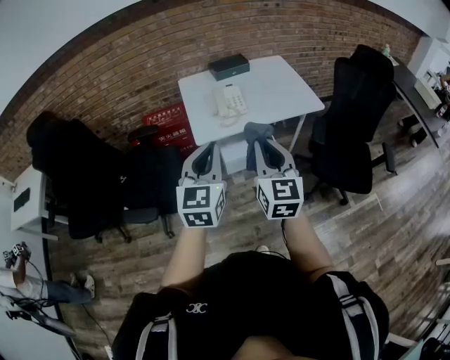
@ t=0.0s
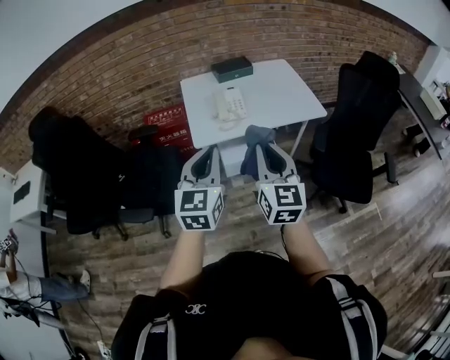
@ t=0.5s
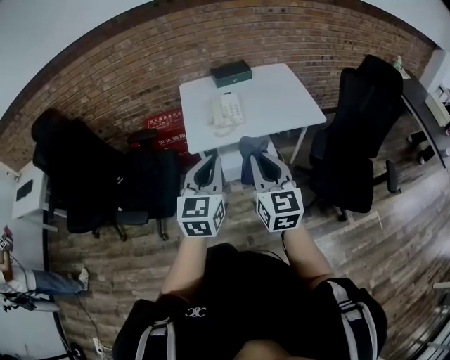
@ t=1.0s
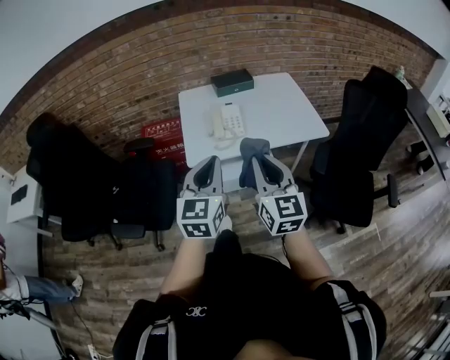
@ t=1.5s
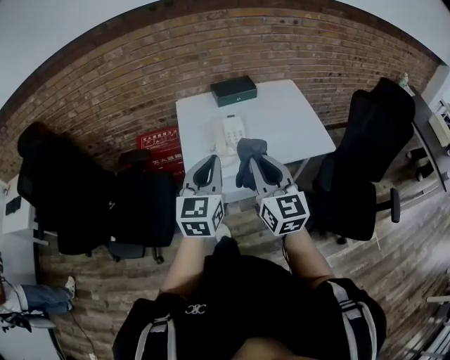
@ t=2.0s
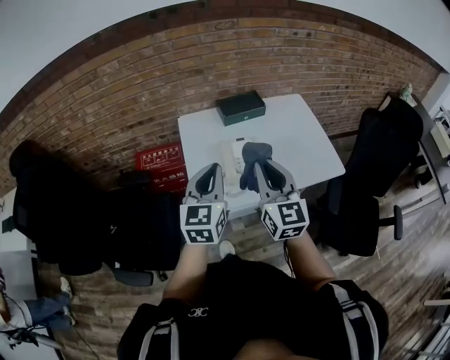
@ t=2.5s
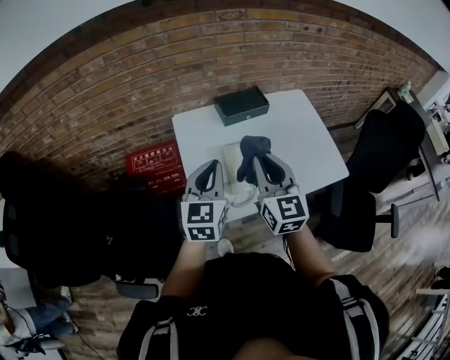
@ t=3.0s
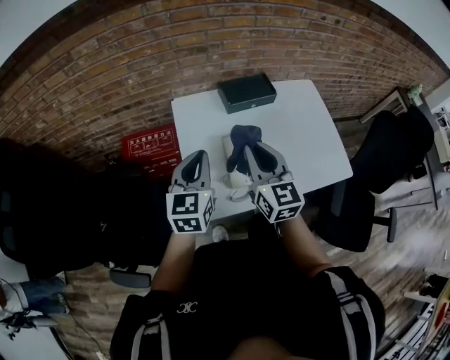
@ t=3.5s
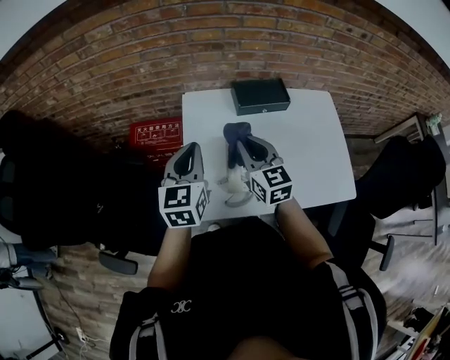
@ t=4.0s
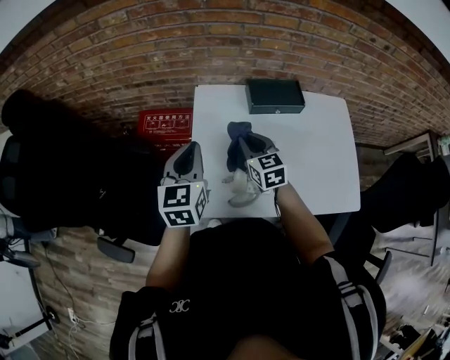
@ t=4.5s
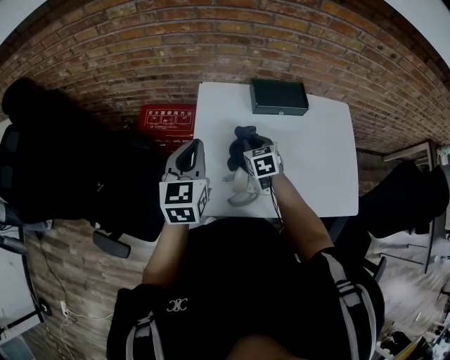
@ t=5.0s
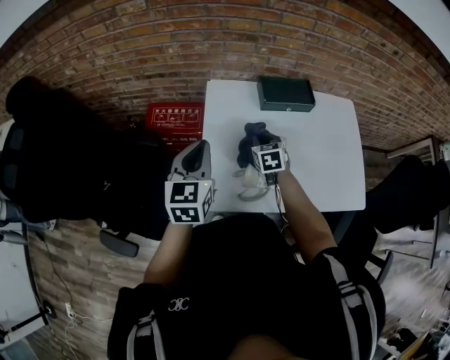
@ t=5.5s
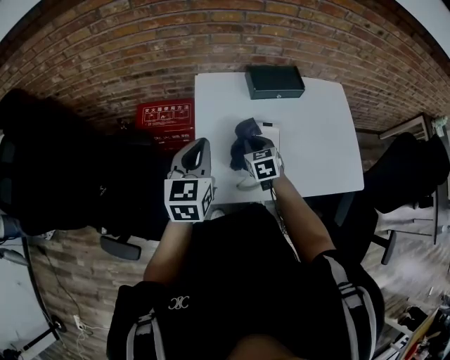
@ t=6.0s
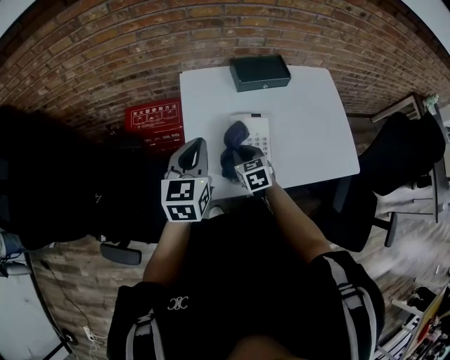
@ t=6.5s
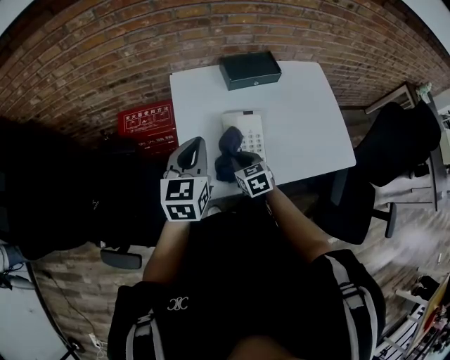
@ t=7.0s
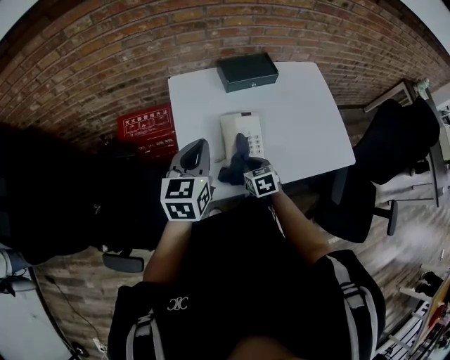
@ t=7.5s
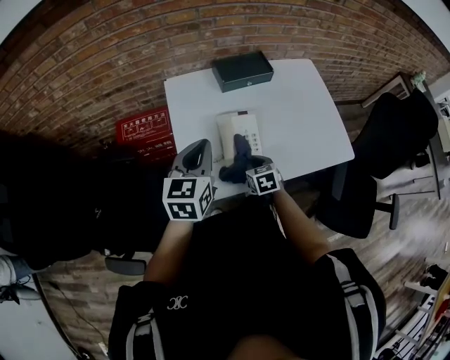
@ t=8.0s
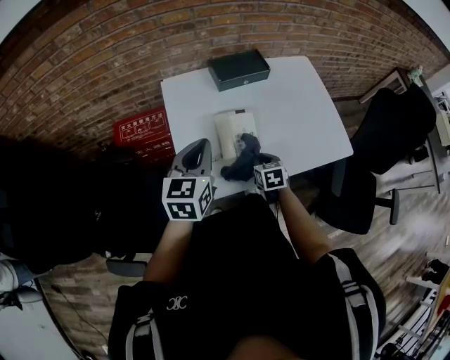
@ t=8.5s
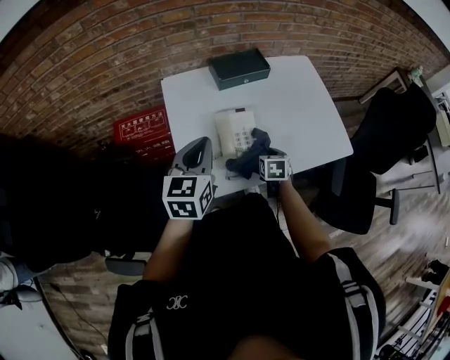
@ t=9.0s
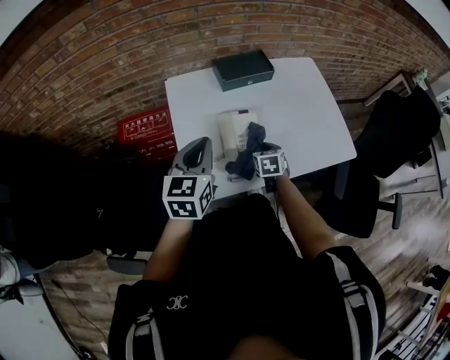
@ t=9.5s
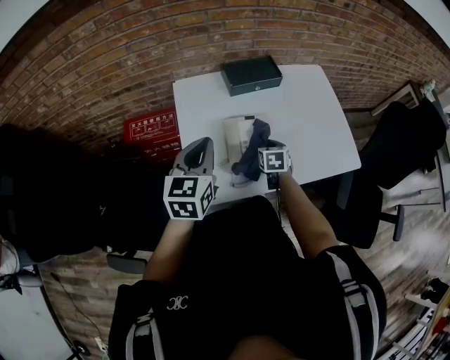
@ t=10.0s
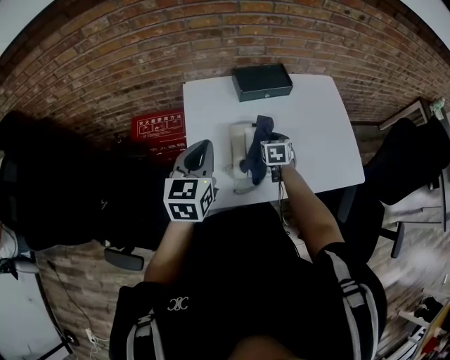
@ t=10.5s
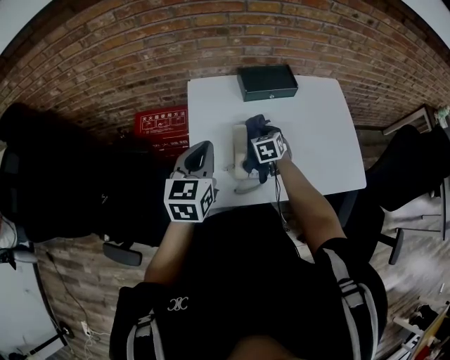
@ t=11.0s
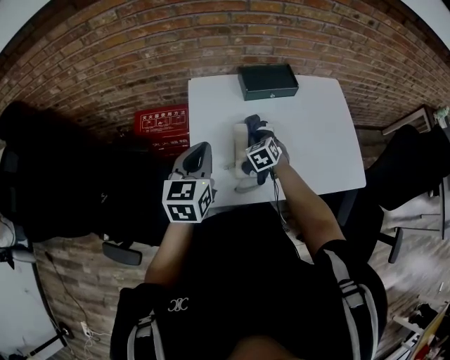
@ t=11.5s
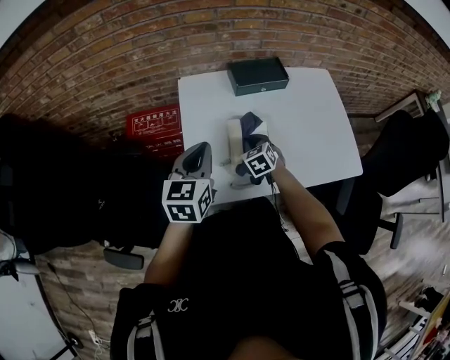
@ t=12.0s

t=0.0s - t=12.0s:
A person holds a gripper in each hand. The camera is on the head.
t=0.0s - t=2.0s: The grippers both shift forward by about 20 cm.
t=2.0s - t=4.0s: Both grippers move forward, some 35 cm. The right gripper changes its angle by about 20 degrees.
t=4.0s - t=6.0s: The left gripper changes place by some 5 cm. Meanwhile the right gripper goes about 20 cm downward, and rotates about 30 degrees.
t=6.0s - t=8.0s: The left gripper moves to the right, some 5 cm. Meanwhile the right gripper shifts some 15 cm backward, to the right and downward.
t=8.0s - t=10.0s: The right gripper moves forward, roughly 10 cm.
t=10.0s - t=12.0s: The right gripper moves to the left, approximately 10 cm, and swivels about 30 degrees.

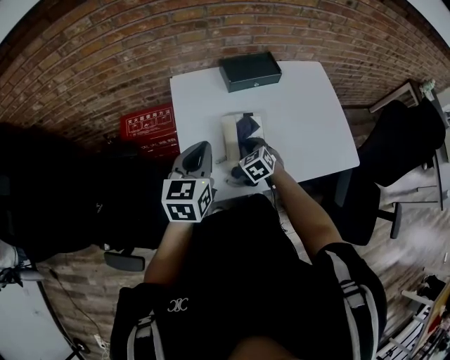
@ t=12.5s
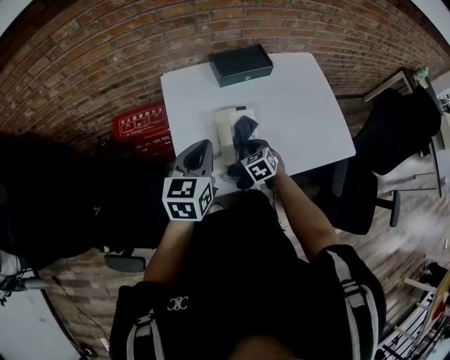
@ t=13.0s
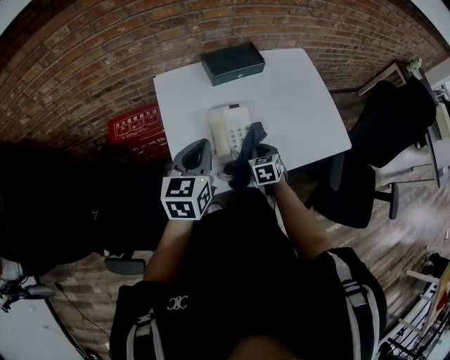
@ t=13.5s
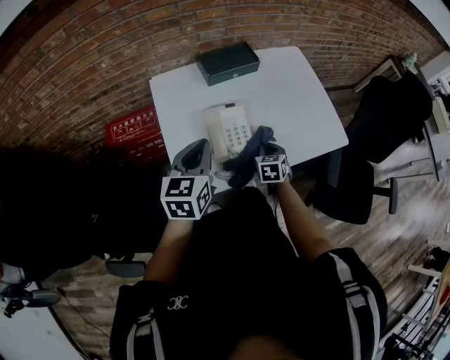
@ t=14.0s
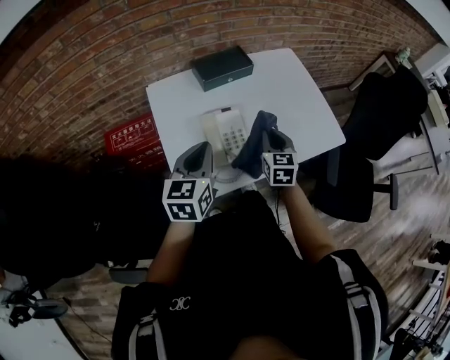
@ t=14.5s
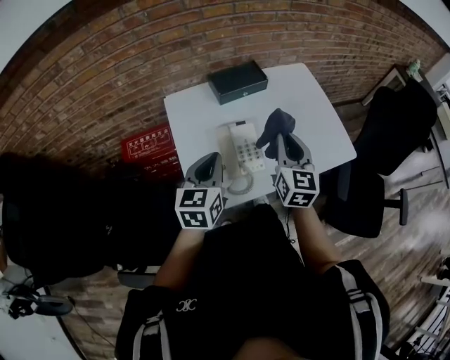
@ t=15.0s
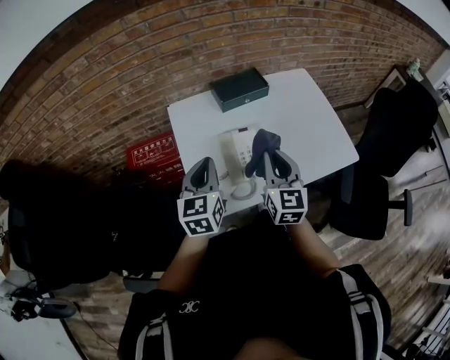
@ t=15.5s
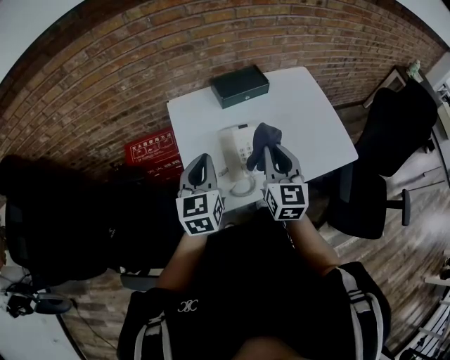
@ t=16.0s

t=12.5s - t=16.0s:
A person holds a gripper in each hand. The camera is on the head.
t=12.5s - t=14.5s: The left gripper is displaced to the right by approximately 5 cm. Meanwhile the right gripper goes some 20 cm to the right and upward, and changes its angle by about 40 degrees.
t=14.5s - t=16.0s: The left gripper changes place by roughly 5 cm. Meanwhile the right gripper travels upward and to the left by some 15 cm.

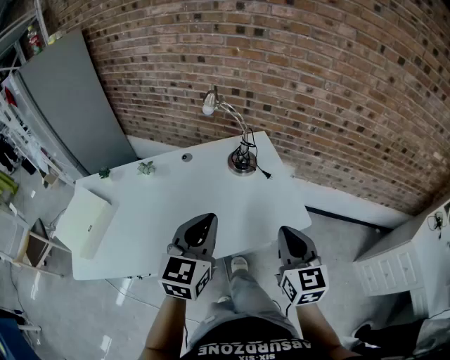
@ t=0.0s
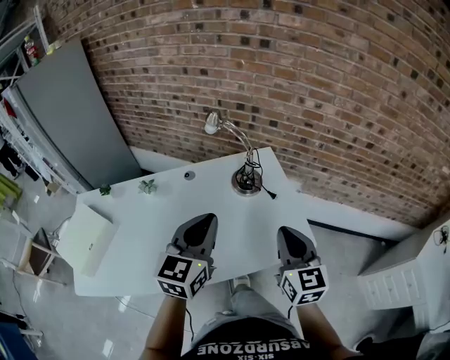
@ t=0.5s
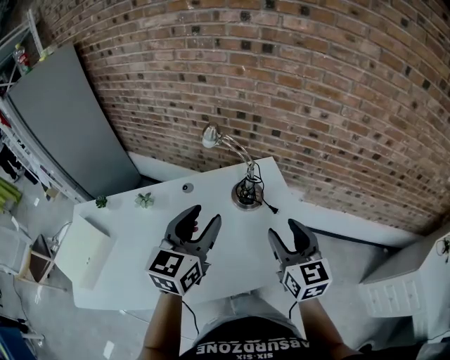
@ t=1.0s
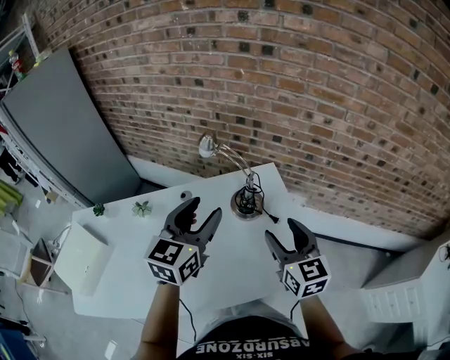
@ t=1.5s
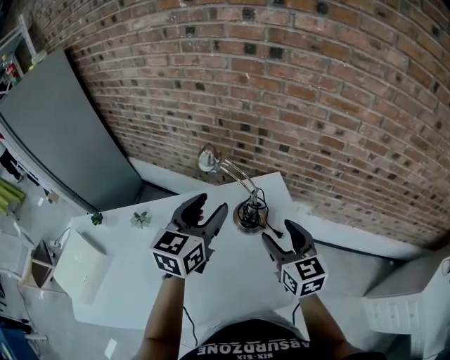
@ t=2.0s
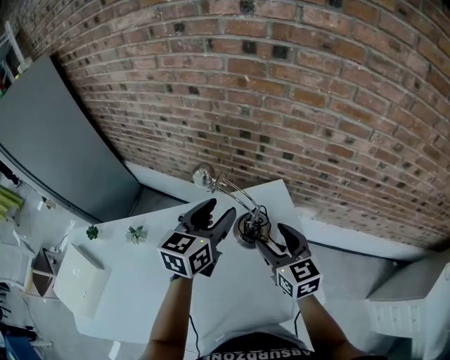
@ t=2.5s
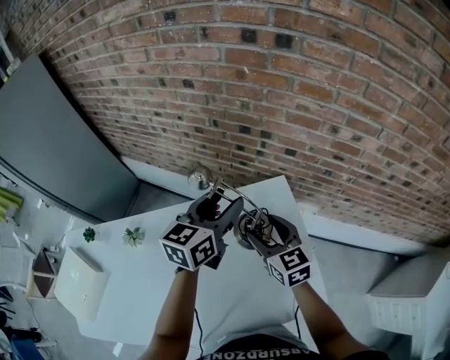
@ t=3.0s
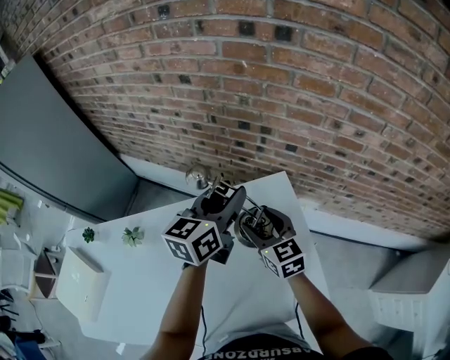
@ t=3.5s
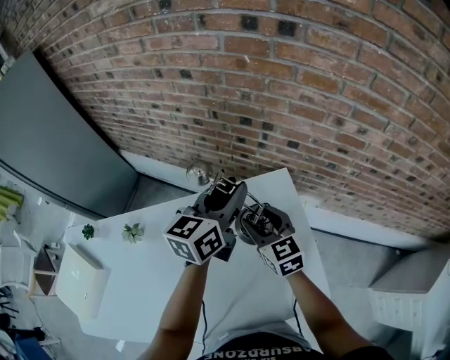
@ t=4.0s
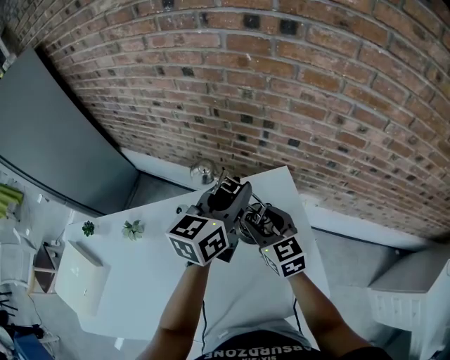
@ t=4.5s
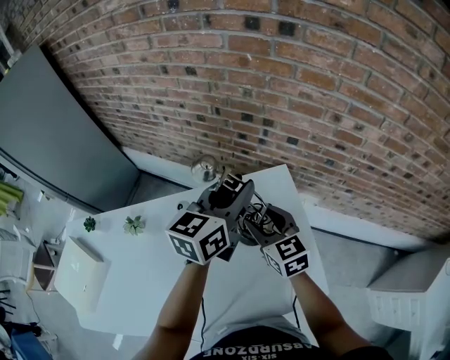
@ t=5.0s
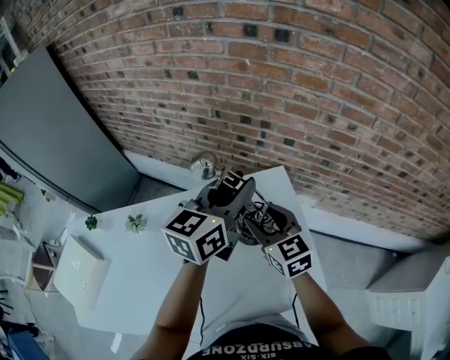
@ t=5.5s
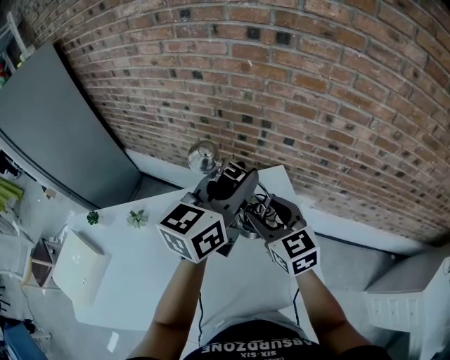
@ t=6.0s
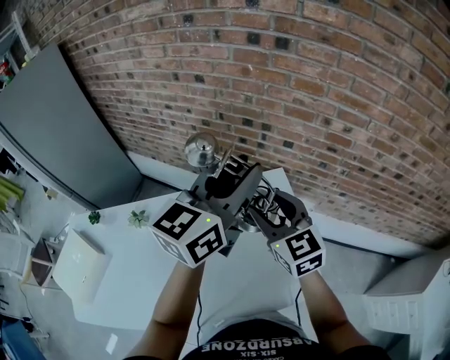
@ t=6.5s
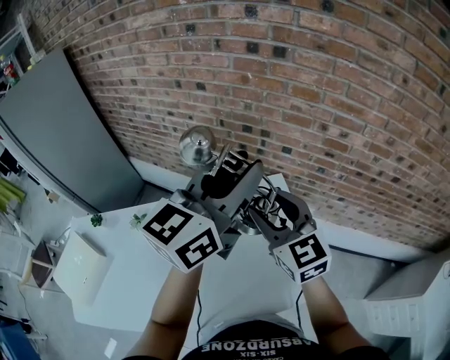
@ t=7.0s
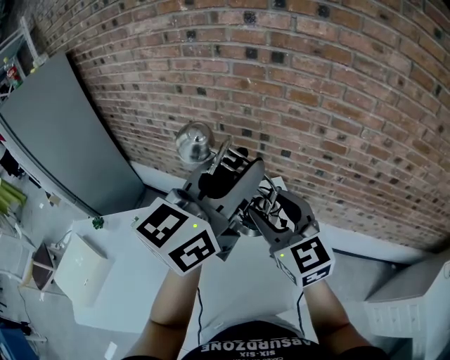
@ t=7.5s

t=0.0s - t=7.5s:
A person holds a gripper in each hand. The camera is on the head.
t=0.0s - t=2.0s: The grippers both shift forward by some 30 cm. The left gripper opens its fingers, while the right gripper opens.
t=2.0s - t=4.0s: The right gripper shifts about 20 cm forward, downward and to the left, while the left gripper goes roughly 15 cm forward, and closes.
t=4.0s - t=5.5s: Both grippers move upward and backward, some 10 cm.
t=5.5s - t=7.5s: The right gripper heads upward, covering roughly 15 cm; the left gripper goes approximately 20 cm upward and backward.

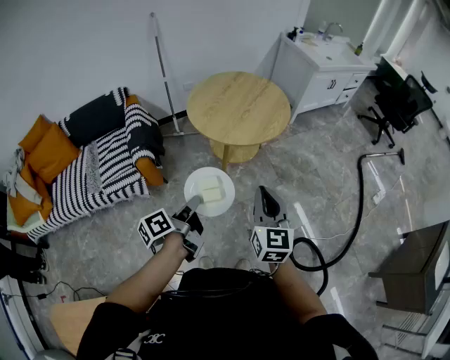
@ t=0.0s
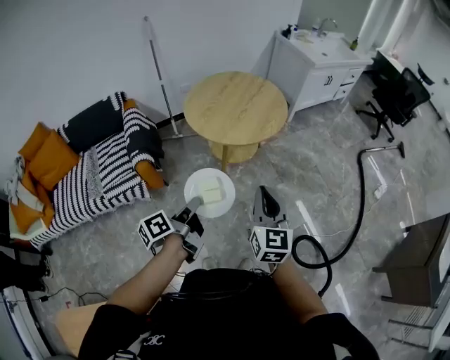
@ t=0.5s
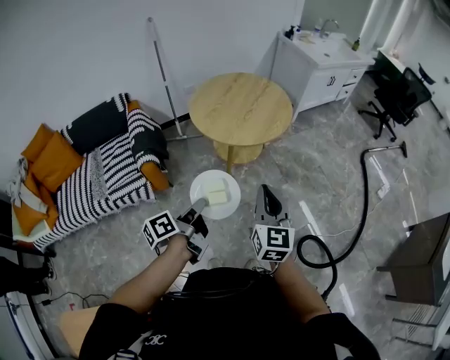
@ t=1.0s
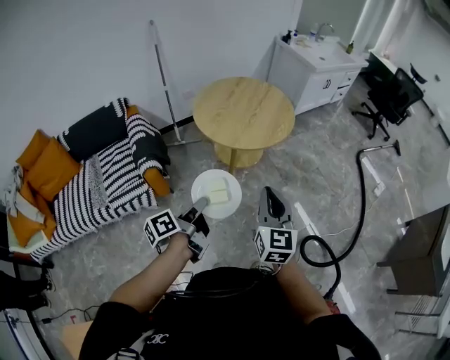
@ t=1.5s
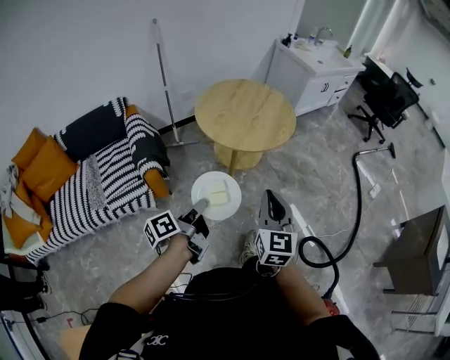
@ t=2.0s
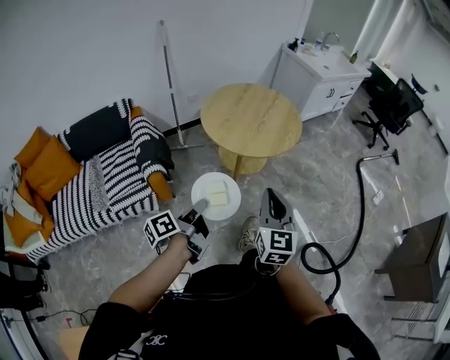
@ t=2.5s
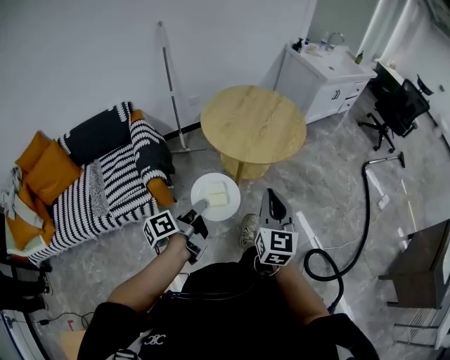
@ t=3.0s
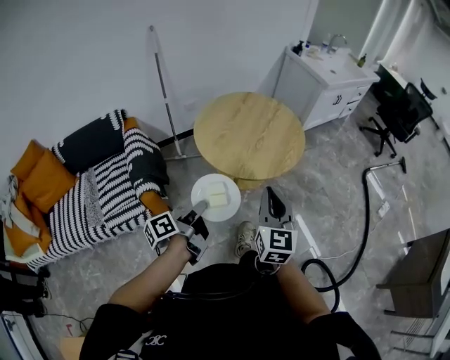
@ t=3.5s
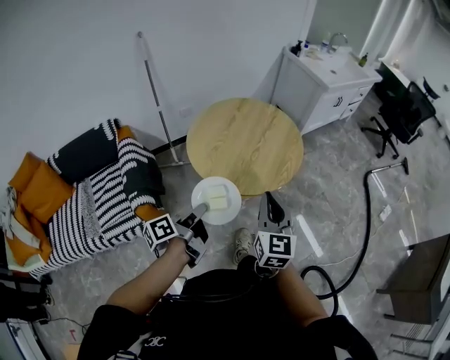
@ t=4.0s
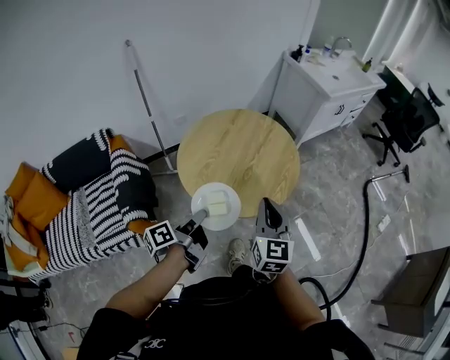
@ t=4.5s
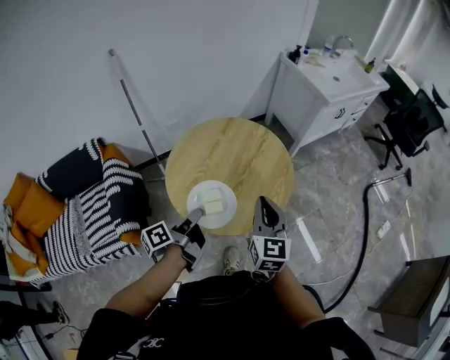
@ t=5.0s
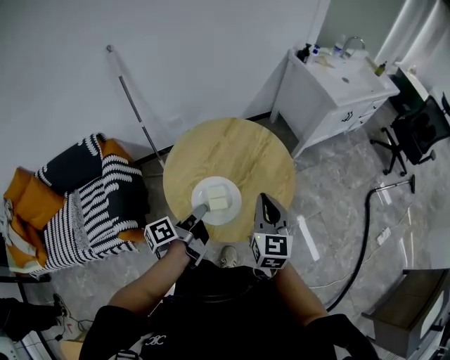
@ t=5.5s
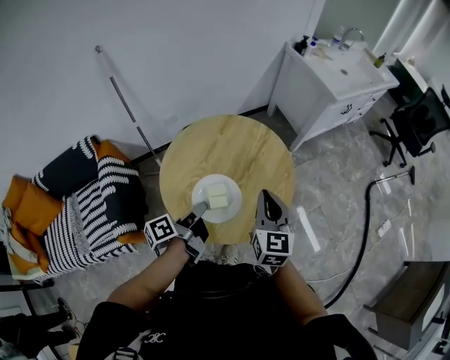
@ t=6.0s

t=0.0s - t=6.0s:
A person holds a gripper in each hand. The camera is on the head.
t=0.0s - t=2.0s: The right gripper shifts by some 10 cm.
t=2.0s - t=4.0s: The right gripper moves about 25 cm.
t=4.0s - t=6.0s: The right gripper shifts by some 25 cm.
